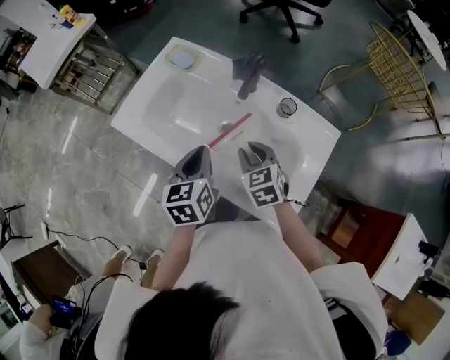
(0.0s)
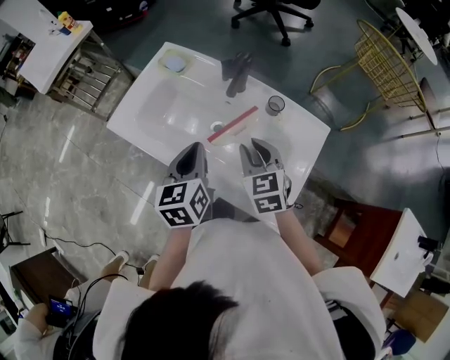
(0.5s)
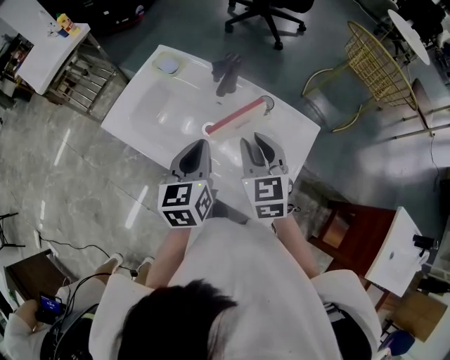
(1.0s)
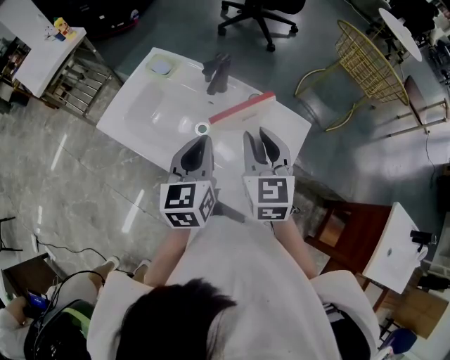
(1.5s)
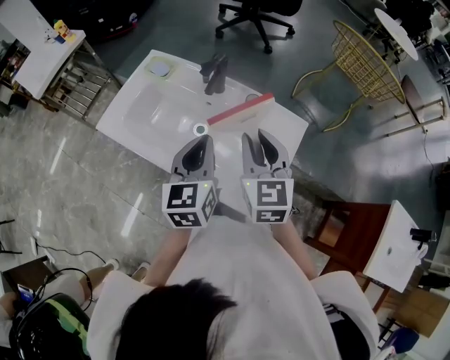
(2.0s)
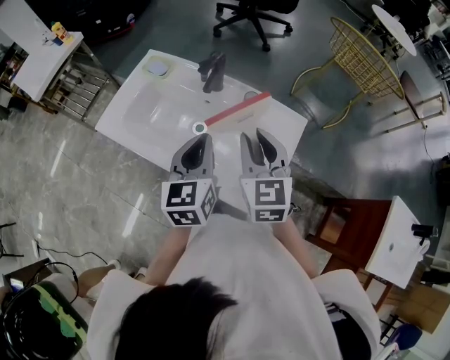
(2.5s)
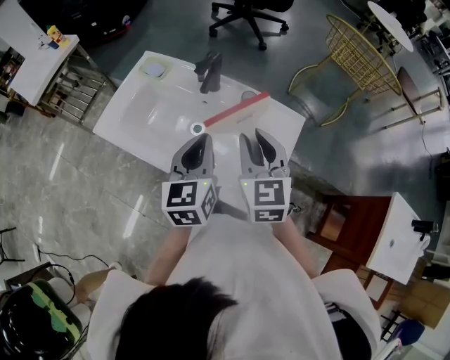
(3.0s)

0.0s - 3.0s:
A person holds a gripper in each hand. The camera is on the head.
0.0s - 1.5s: Both grippers travel together upward and to the right, approximately 15 cm. The right gripper turns by about 30 degrees.
1.5s - 3.0s: The grippers move only a little.

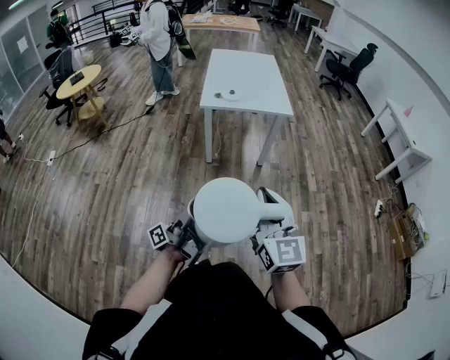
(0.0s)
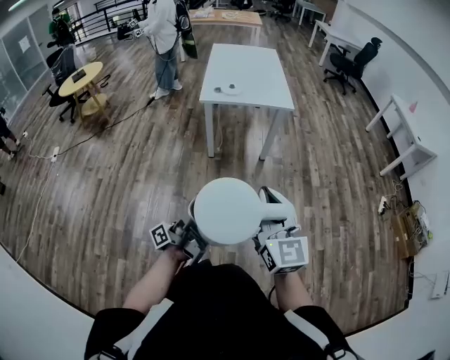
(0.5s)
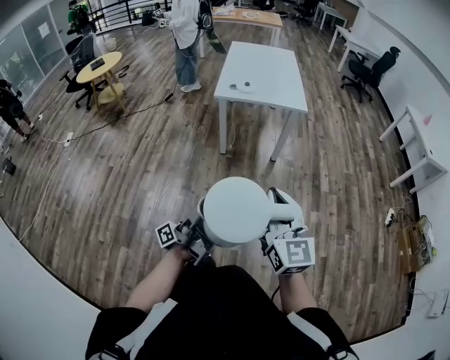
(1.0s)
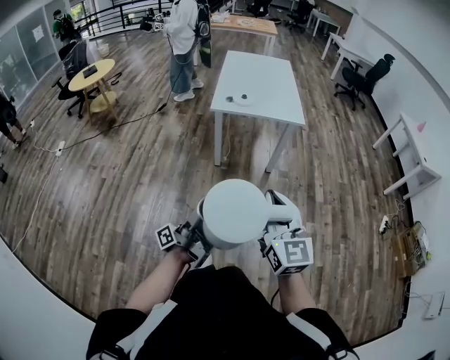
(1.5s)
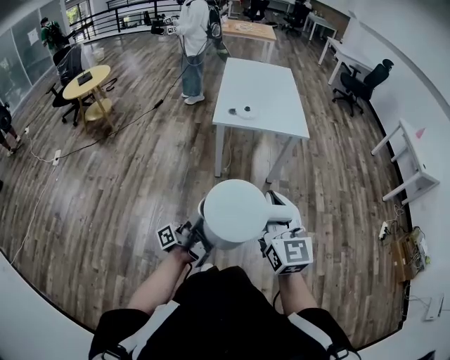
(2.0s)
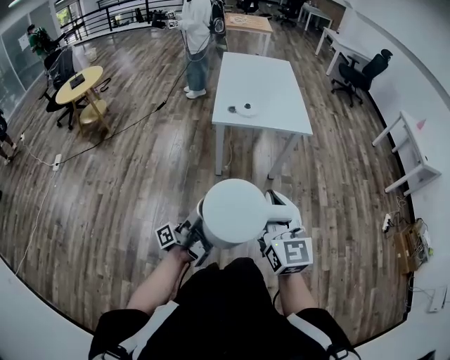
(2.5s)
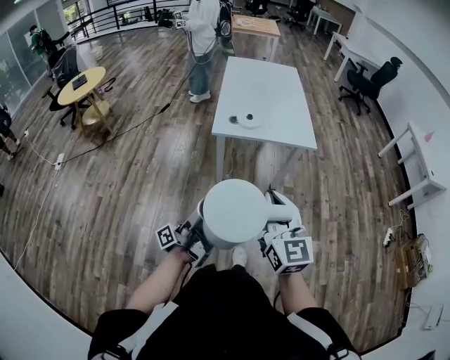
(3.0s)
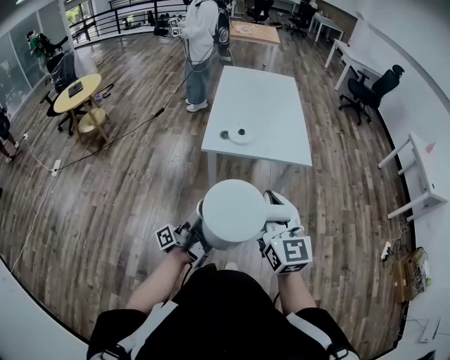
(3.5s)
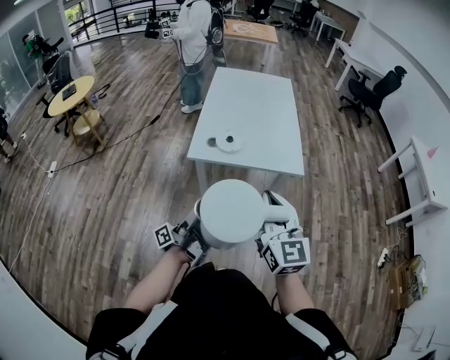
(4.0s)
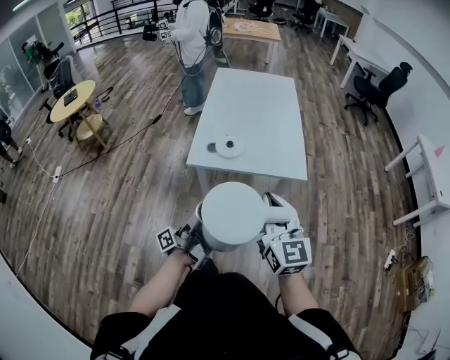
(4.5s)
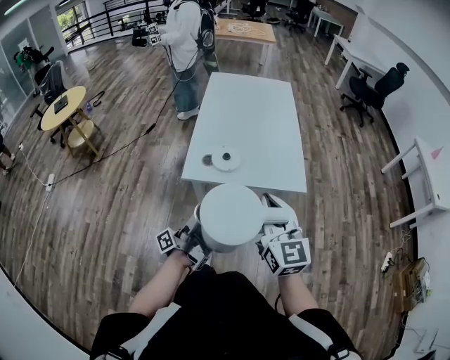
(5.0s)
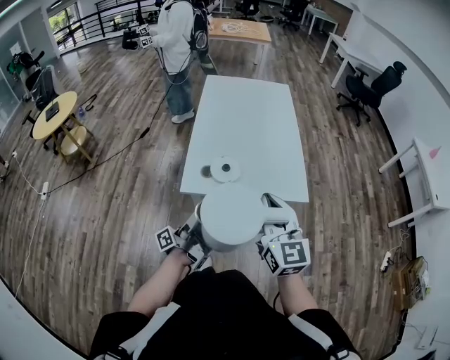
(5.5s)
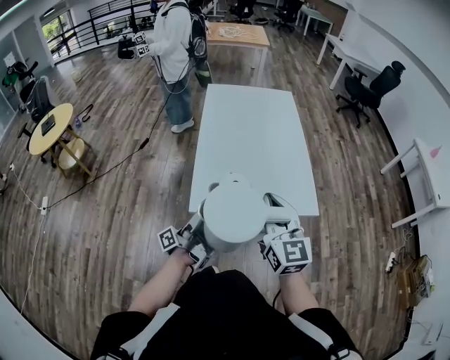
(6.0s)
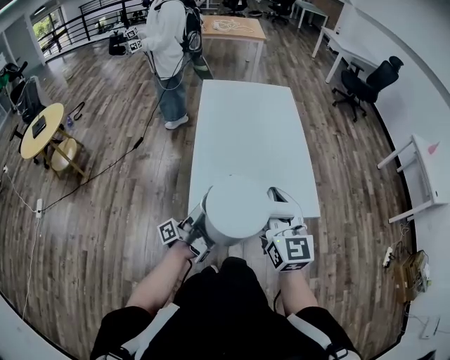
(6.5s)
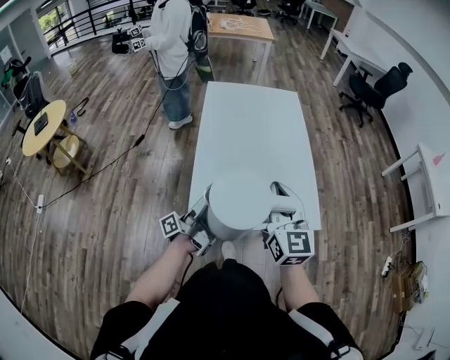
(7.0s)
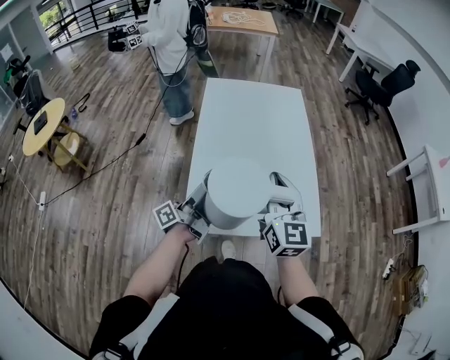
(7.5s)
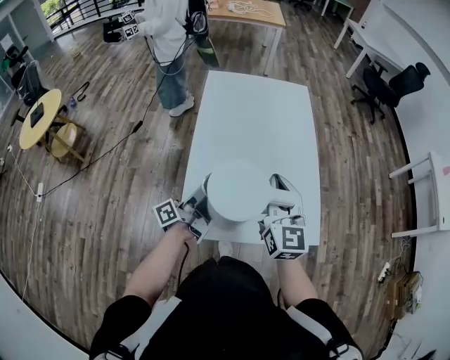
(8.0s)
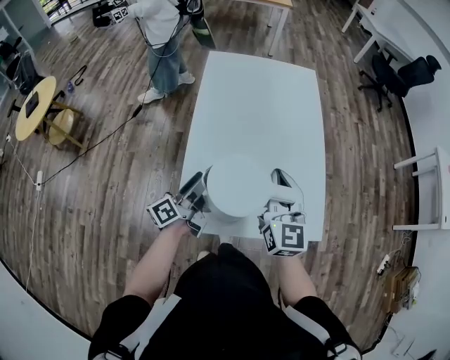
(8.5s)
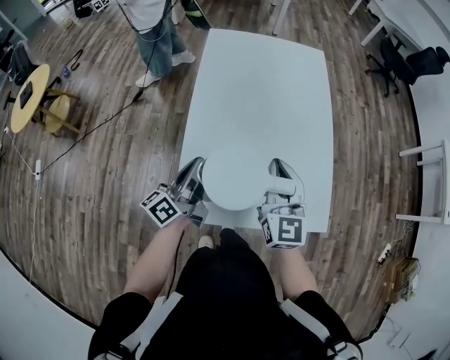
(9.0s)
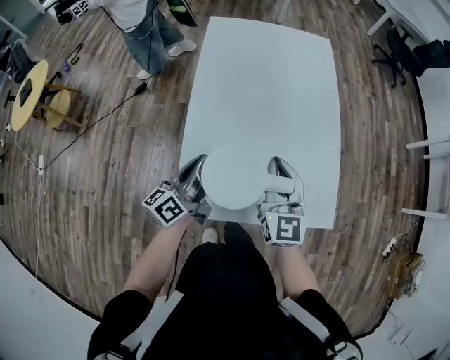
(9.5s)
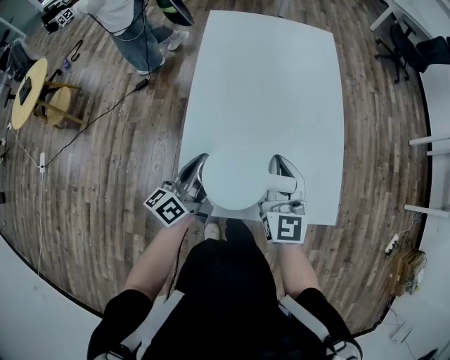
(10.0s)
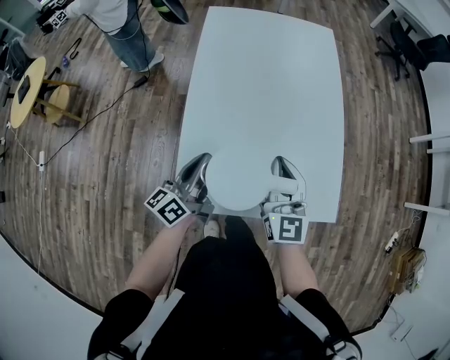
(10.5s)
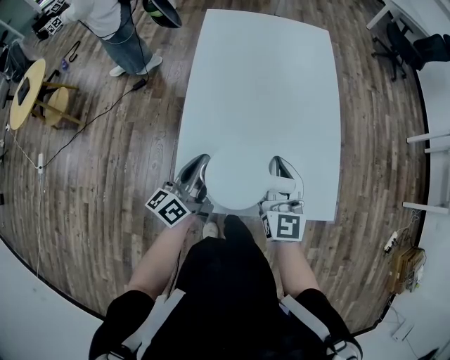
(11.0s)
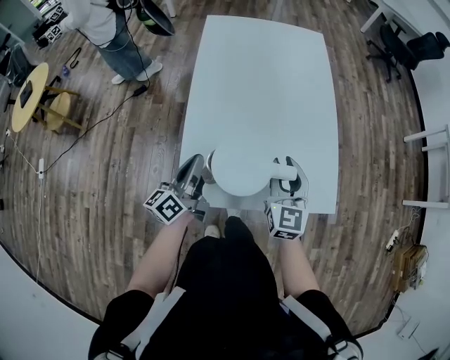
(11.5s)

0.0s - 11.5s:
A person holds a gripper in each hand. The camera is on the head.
0.0s - 2.0s: The right gripper changes place by about 10 cm.
2.0s - 4.0s: The right gripper shifts by approximately 25 cm.
4.0s - 6.0s: The right gripper shifts by roughly 25 cm.
6.0s - 7.5s: The right gripper moves approximately 15 cm.
7.5s - 9.5s: The right gripper shifts some 10 cm downward.
9.5s - 11.5s: The right gripper shifts by some 5 cm, and opens.

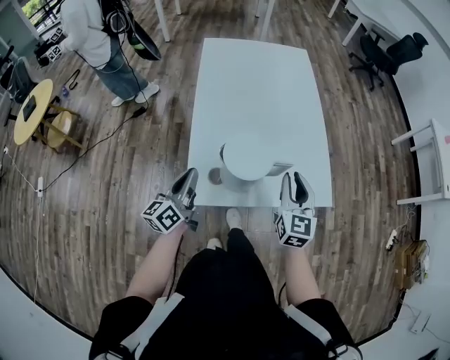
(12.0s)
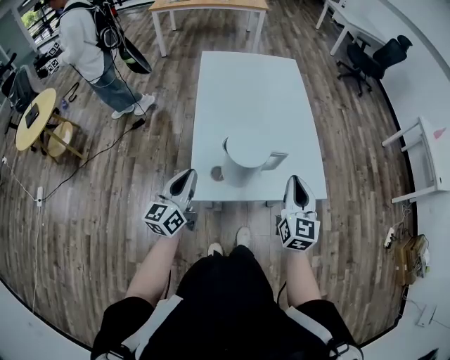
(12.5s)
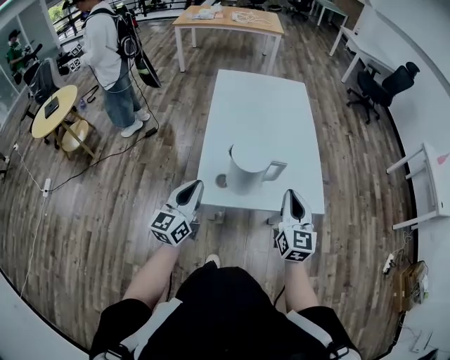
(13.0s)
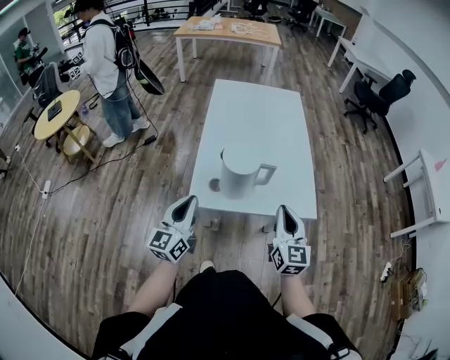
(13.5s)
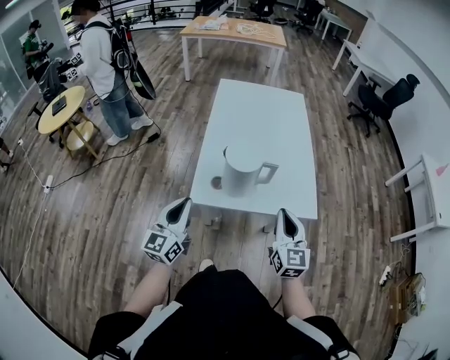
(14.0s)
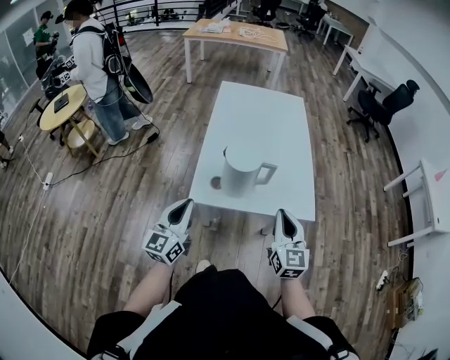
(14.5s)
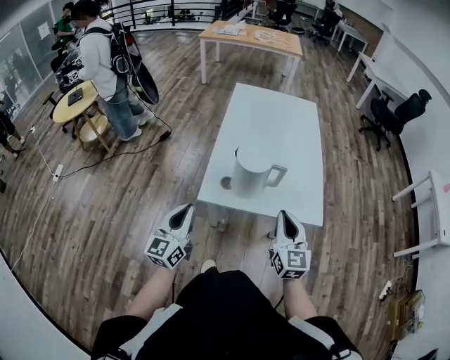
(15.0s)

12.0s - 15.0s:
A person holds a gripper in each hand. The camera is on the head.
12.0s - 13.5s: The right gripper moves approximately 15 cm, and closes.

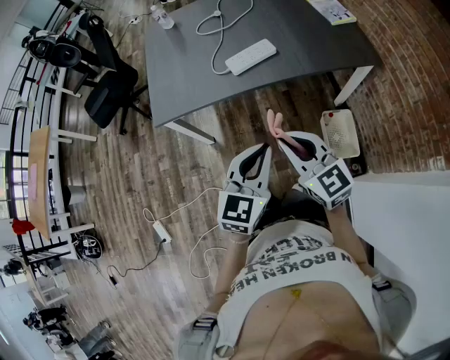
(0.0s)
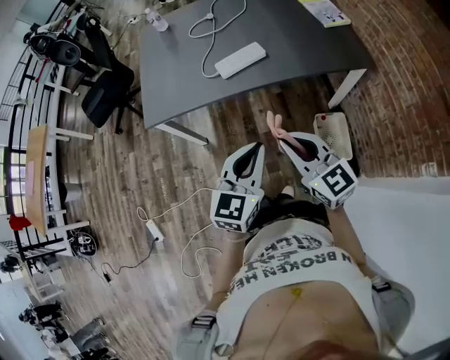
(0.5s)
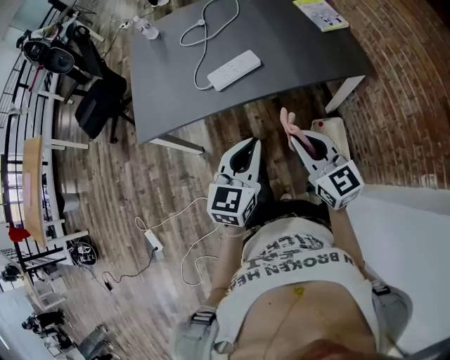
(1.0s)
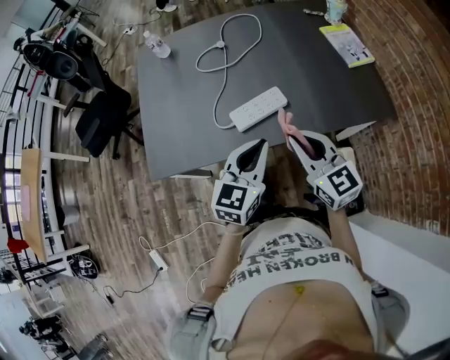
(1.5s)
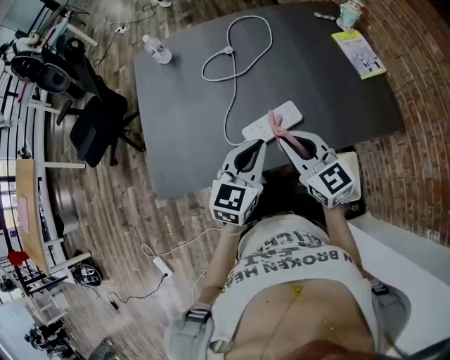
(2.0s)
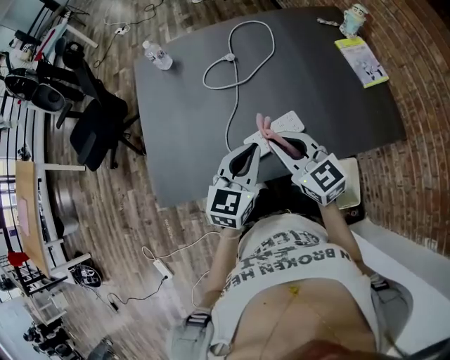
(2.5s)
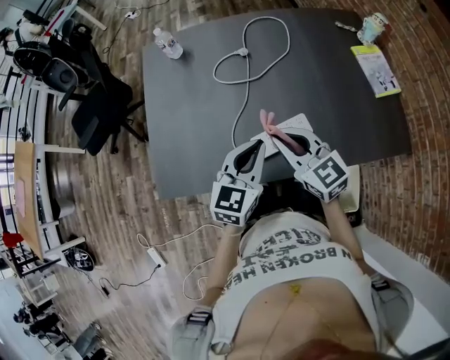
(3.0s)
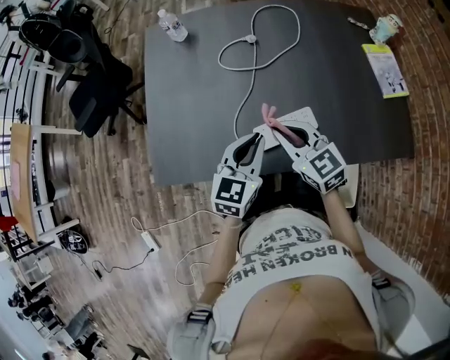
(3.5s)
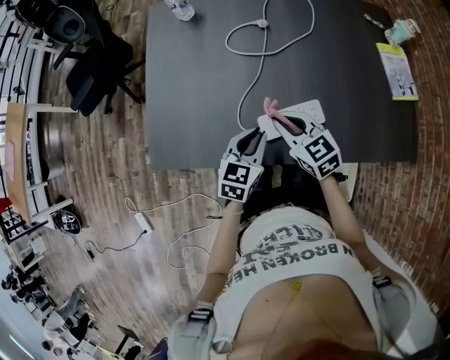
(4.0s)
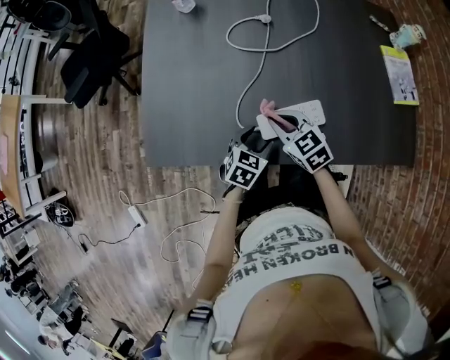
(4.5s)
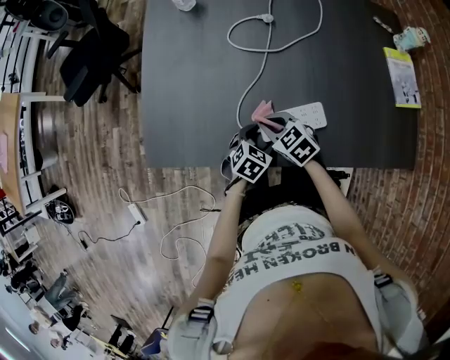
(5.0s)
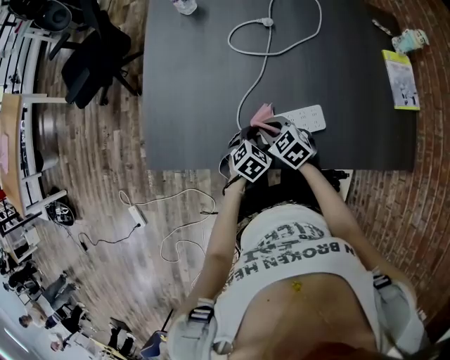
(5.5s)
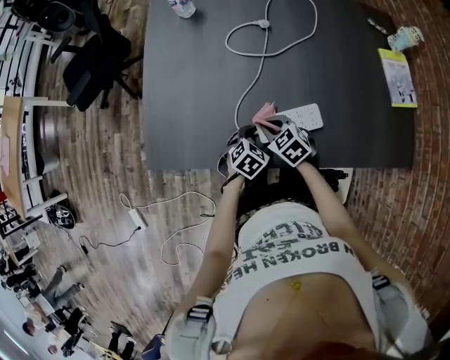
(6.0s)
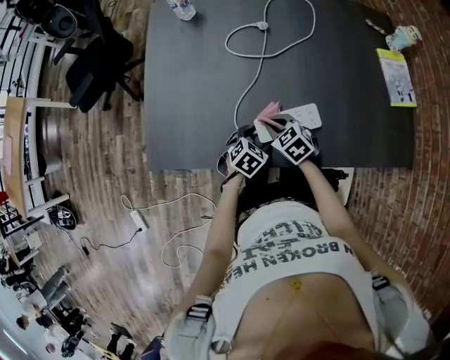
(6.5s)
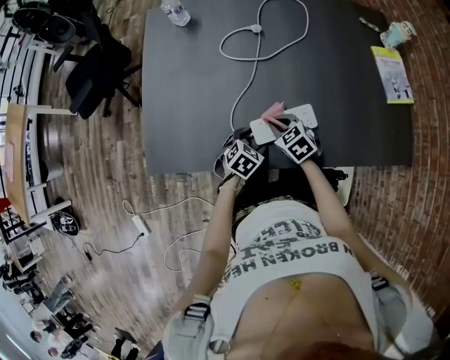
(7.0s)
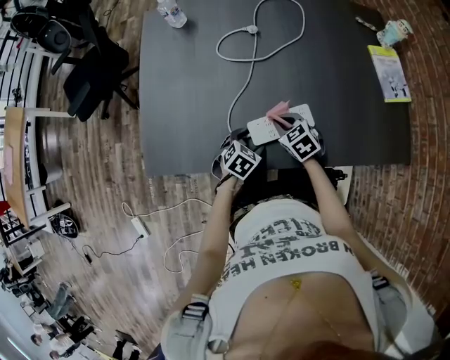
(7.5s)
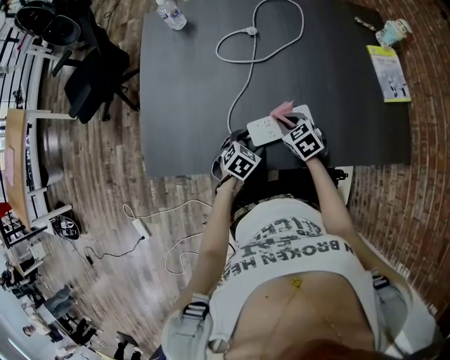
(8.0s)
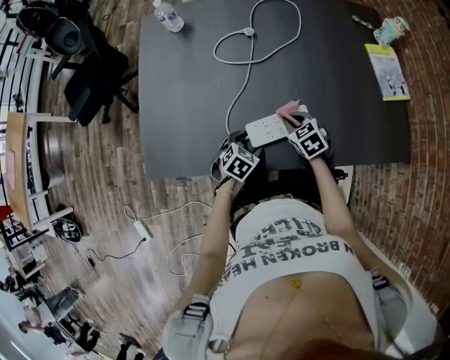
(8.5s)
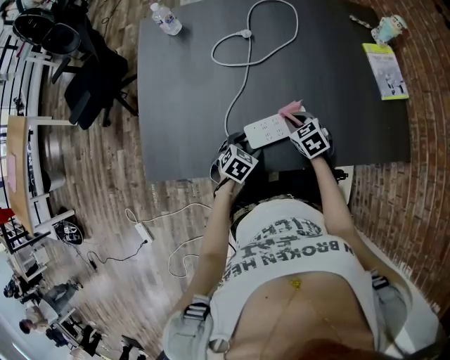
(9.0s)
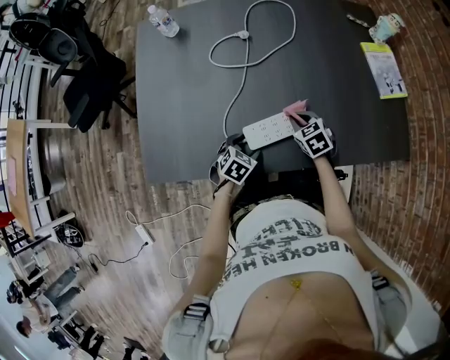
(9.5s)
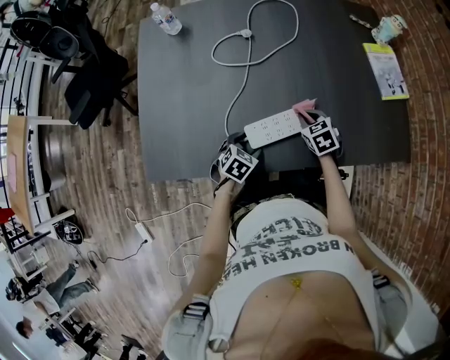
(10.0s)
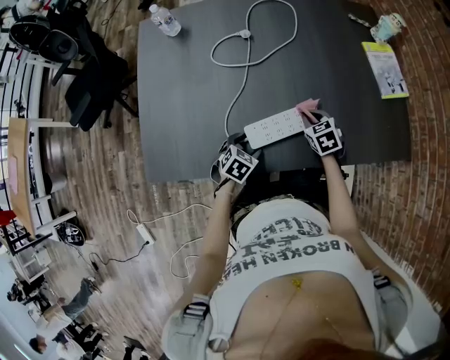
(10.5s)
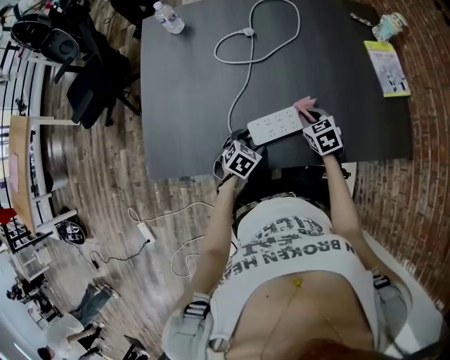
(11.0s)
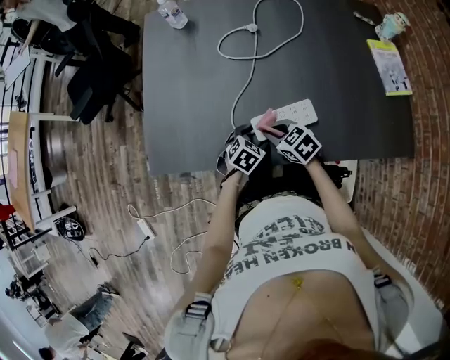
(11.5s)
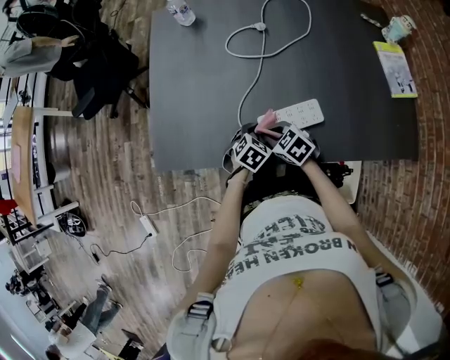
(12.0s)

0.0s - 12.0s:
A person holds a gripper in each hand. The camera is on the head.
0.0s - 2.0s: Both grippers move forward, roughly 35 cm.
2.0s - 4.0s: The right gripper heads downward, forward and to the left, covering roughly 15 cm, and changes its angle by about 20 degrees, while the left gripper moves downward and forward, approximately 15 cm.
4.0s - 6.0s: The grippers both shift downward by approximately 15 cm. The right gripper changes its angle by about 20 degrees; the left gripper turns by roughly 30 degrees, and opens its fingers.
6.0s - 8.0s: The right gripper travels to the right by roughly 10 cm.
8.0s - 10.0s: The right gripper moves to the right, some 10 cm.
10.0s - 12.0s: The right gripper goes approximately 20 cm to the left and backward, and swivels about 30 degrees.
